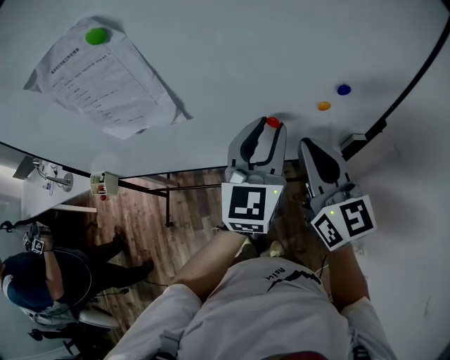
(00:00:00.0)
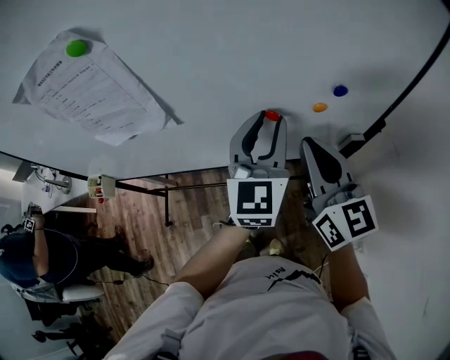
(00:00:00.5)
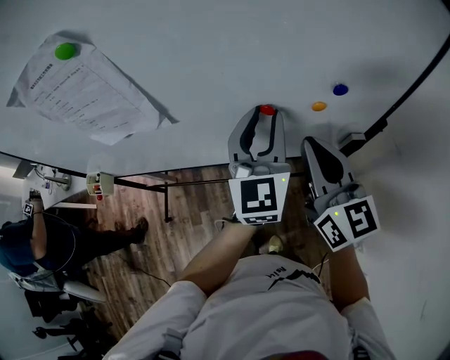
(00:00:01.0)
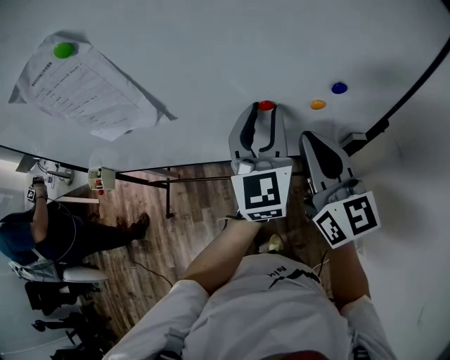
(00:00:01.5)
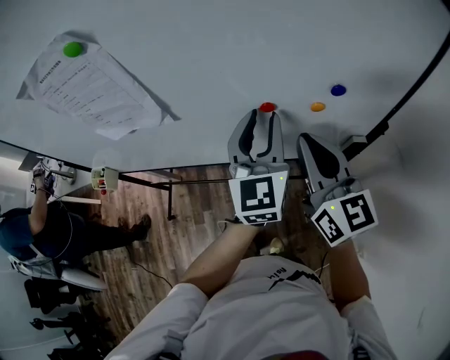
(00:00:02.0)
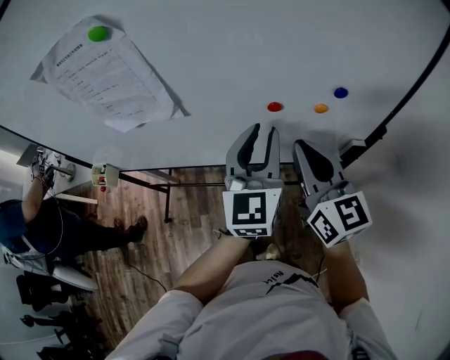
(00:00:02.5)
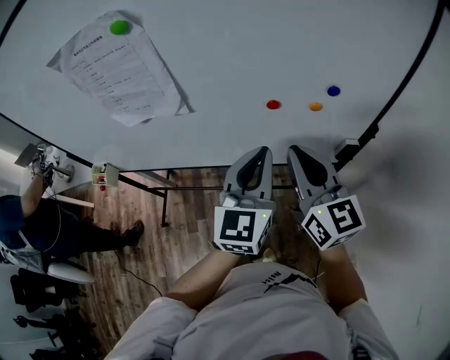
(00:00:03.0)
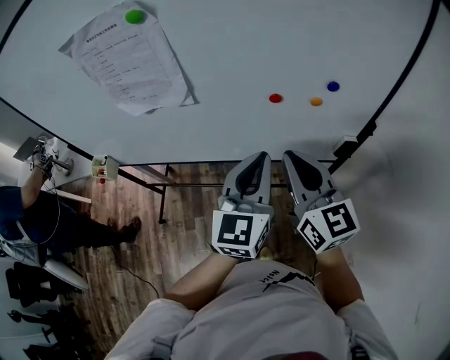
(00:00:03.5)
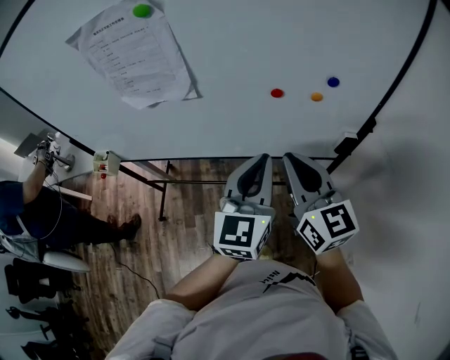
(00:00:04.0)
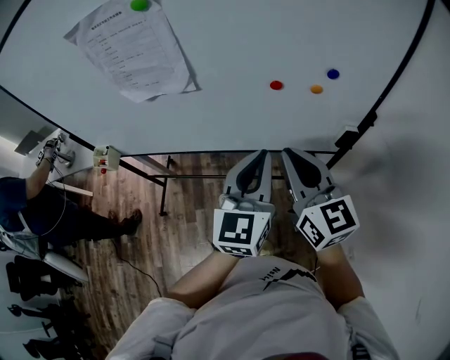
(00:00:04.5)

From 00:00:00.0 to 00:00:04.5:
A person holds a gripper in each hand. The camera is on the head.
From 00:00:00.0 to 00:00:02.0: The grippers stay close to where they were, moving slightly.
From 00:00:02.0 to 00:00:04.5: The left gripper moves backward, some 15 cm, and closes up; the right gripper shifts about 10 cm backward and to the left.

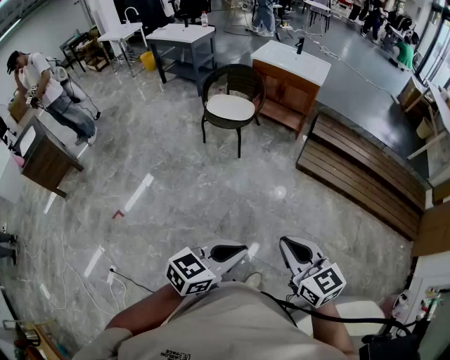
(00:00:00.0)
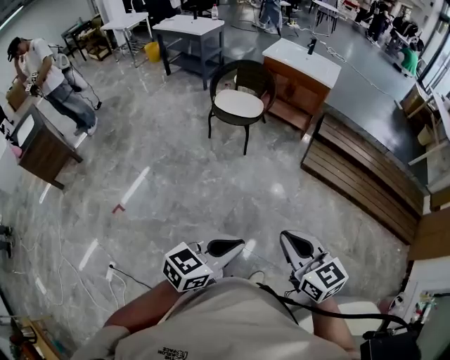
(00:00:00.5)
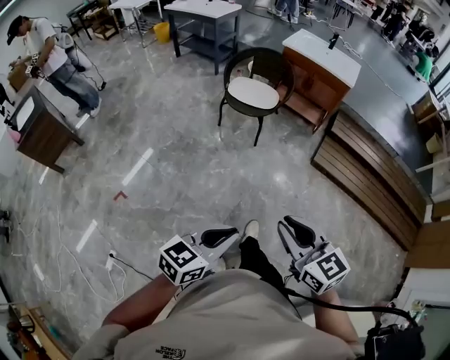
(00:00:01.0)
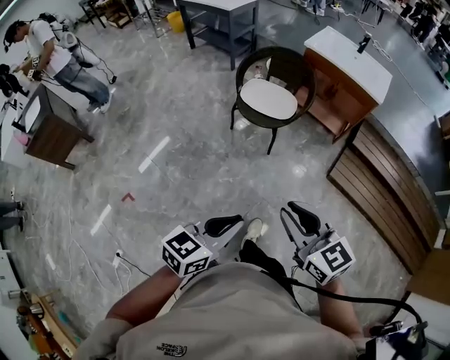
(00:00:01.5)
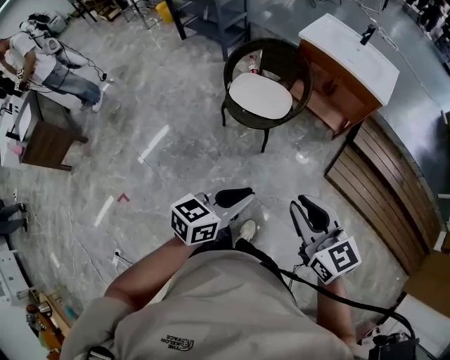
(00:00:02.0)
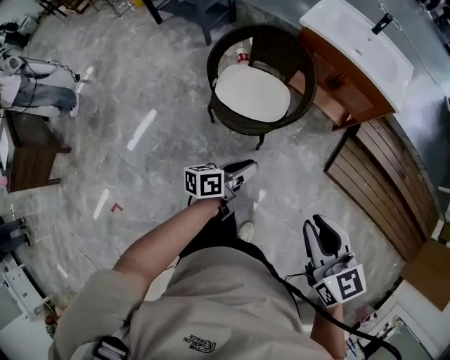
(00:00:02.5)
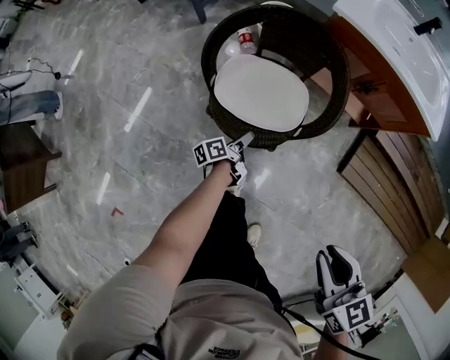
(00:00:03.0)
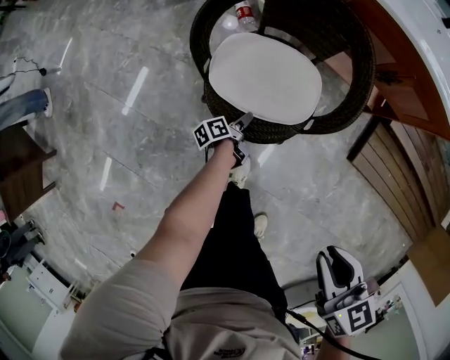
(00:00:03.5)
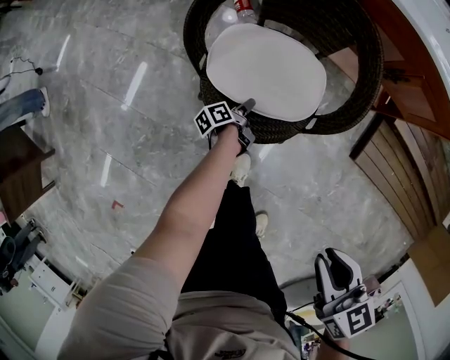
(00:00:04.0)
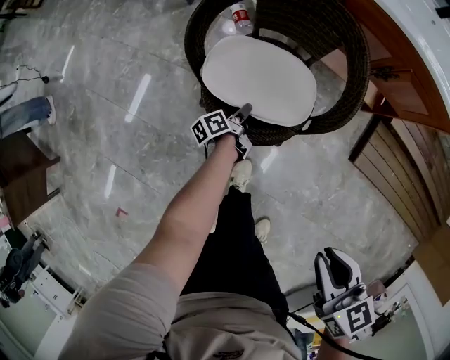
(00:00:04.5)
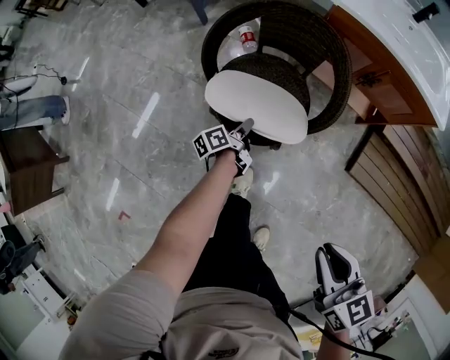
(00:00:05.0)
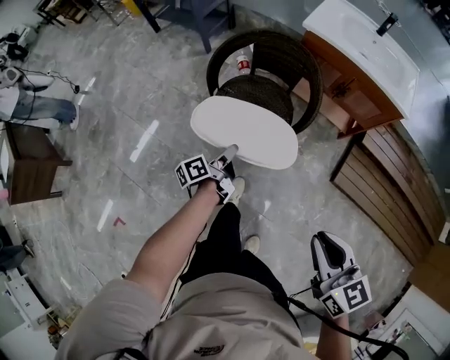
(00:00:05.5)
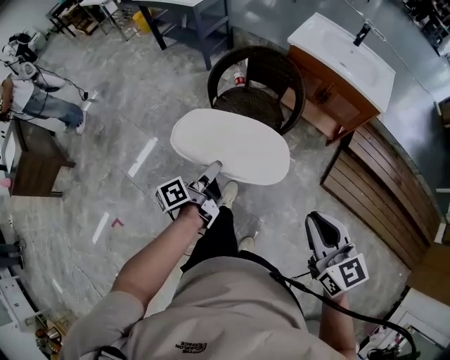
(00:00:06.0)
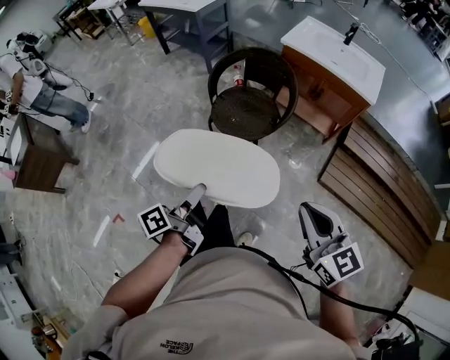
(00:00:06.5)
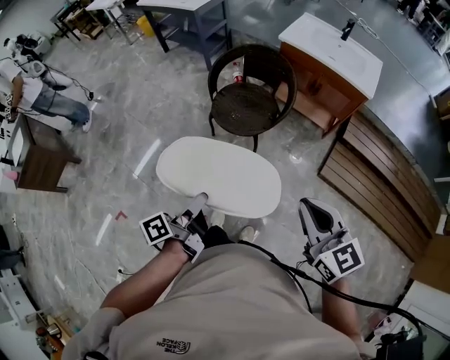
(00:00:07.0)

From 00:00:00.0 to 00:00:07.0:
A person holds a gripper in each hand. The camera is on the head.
From 00:00:00.0 to 00:00:02.0: The pair of grippers is taken forward, about 50 cm.
From 00:00:02.0 to 00:00:03.5: The left gripper is displaced downward and forward by roughly 80 cm, twists some 60 degrees counterclockwise, seen from behind, and opens up, while the right gripper heads forward and downward, covering some 40 cm, and changes its angle by roughly 40 degrees.
From 00:00:03.5 to 00:00:05.0: The right gripper moves backward and upward, some 10 cm, while the left gripper moves upward, roughly 15 cm, and closes its fingers.
From 00:00:05.0 to 00:00:07.0: The left gripper shifts approximately 60 cm backward and upward. The right gripper goes some 30 cm backward and upward, and rotates approximately 30 degrees.

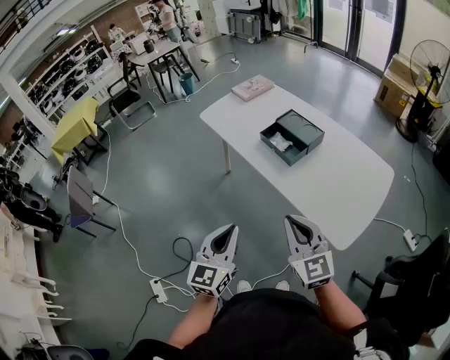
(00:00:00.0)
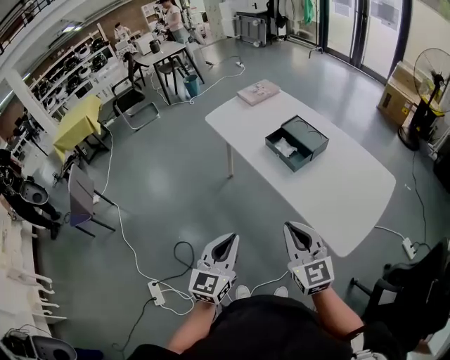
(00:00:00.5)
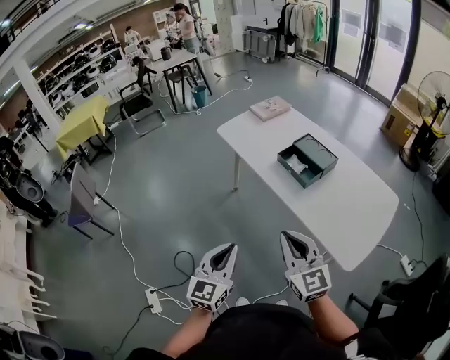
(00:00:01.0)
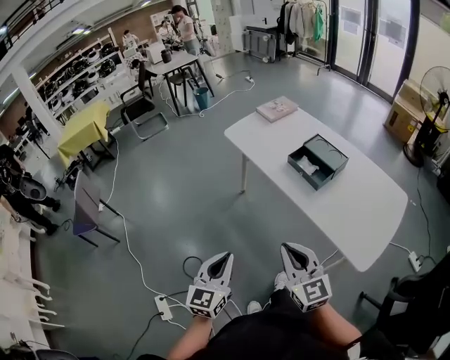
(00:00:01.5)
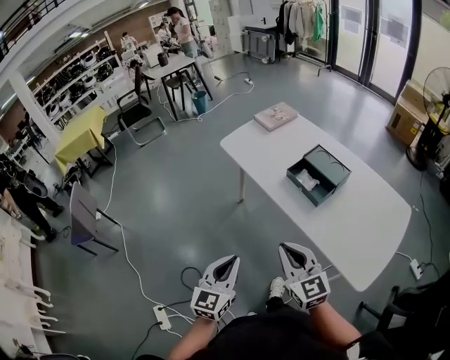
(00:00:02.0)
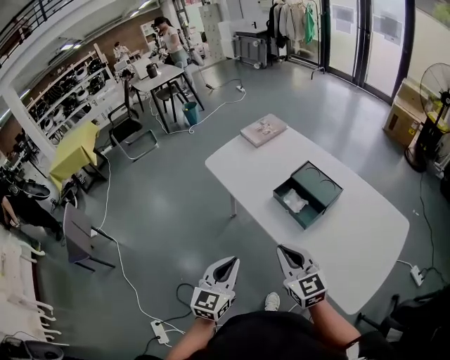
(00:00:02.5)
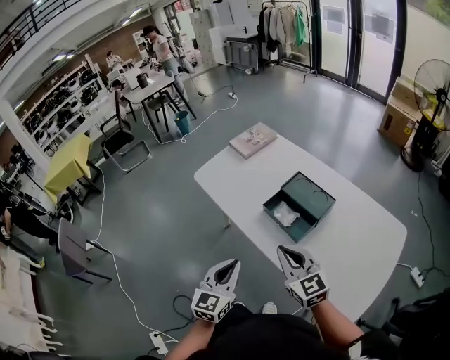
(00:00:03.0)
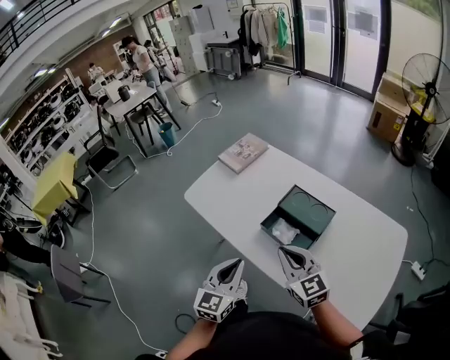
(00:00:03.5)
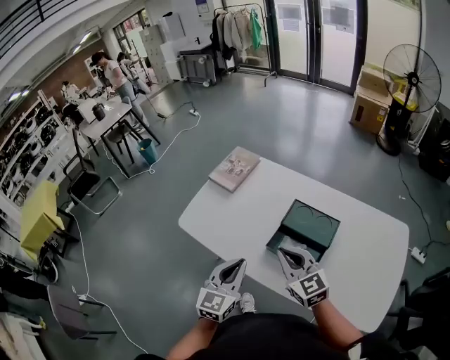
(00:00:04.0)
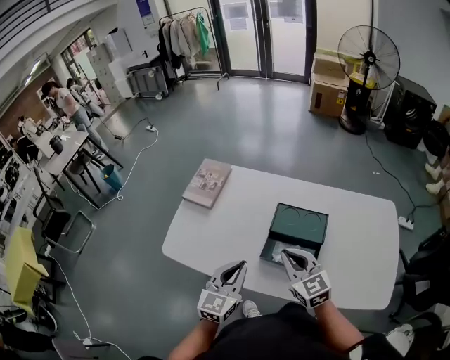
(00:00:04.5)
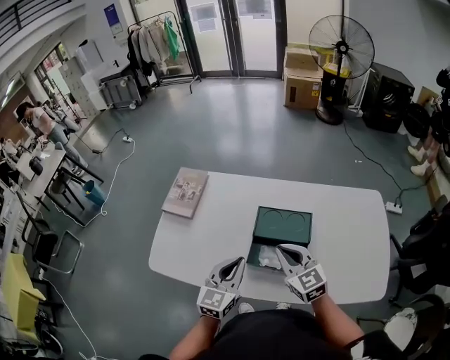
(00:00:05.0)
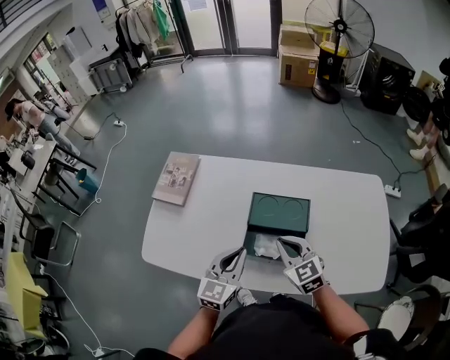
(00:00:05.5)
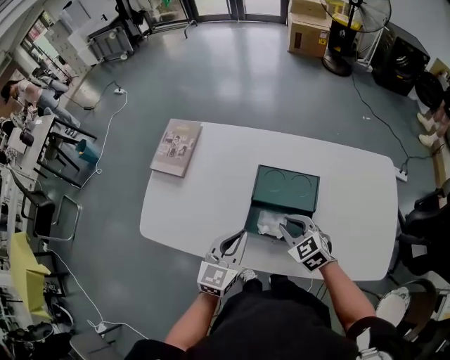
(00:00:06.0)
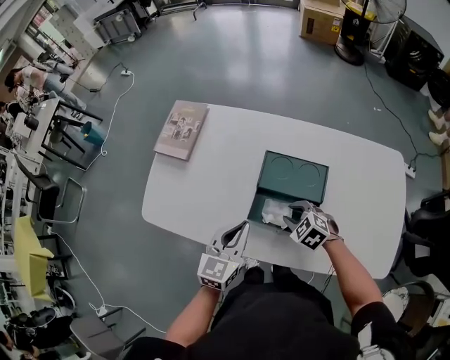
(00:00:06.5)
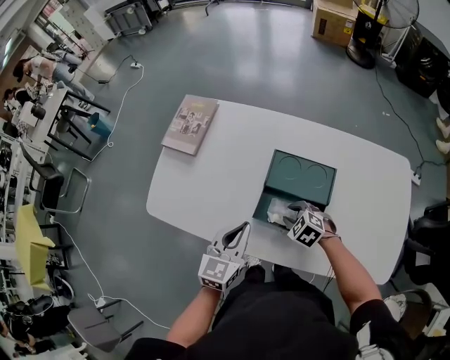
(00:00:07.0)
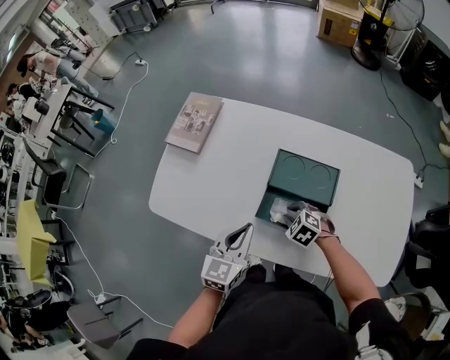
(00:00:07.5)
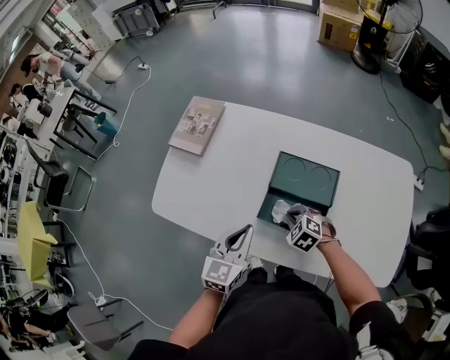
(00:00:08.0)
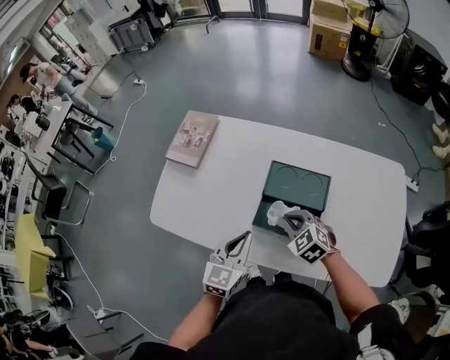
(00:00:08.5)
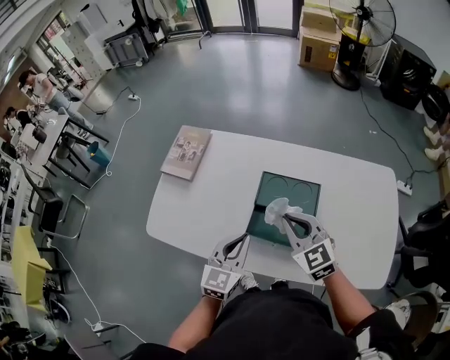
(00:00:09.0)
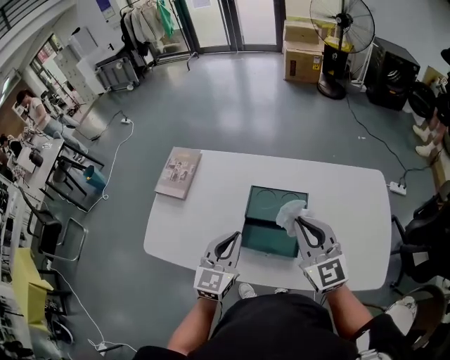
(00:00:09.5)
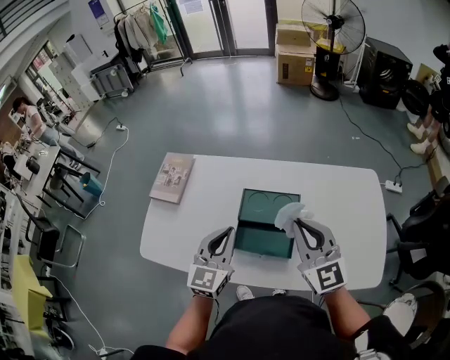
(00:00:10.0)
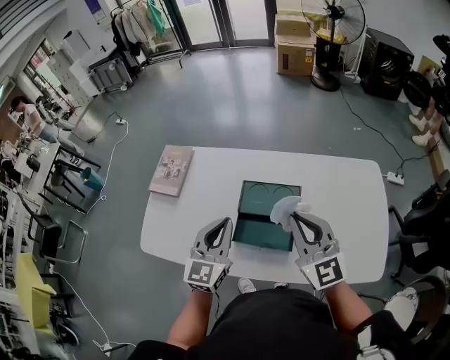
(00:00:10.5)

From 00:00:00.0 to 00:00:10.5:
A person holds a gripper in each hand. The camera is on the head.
From 00:00:00.0 to 00:00:02.0: The right gripper heads to the left and forward, covering roughly 15 cm. The left gripper shifts roughly 15 cm to the left, forward and downward.
From 00:00:02.0 to 00:00:04.0: The two grippers go roughly 40 cm forward. The left gripper changes its angle by approximately 20 degrees.
From 00:00:04.0 to 00:00:06.5: The left gripper travels forward, downward and to the right by approximately 15 cm, and swivels about 20 degrees. Meanwhile the right gripper moves downward, roughly 20 cm, tips its fingers downward by some 40 degrees, and opens.
From 00:00:06.5 to 00:00:08.5: The right gripper travels upward by roughly 5 cm, and closes.
From 00:00:08.5 to 00:00:10.5: The left gripper shifts approximately 15 cm upward and forward, while the right gripper is displaced upward and to the right by roughly 25 cm, and tilts its fingers approximately 40 degrees upward.

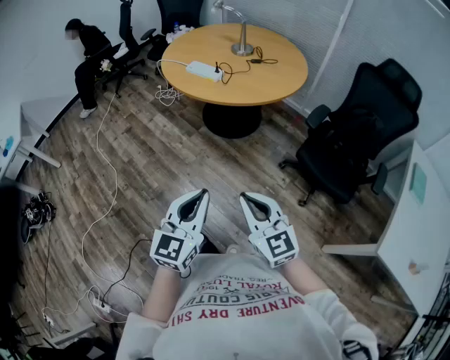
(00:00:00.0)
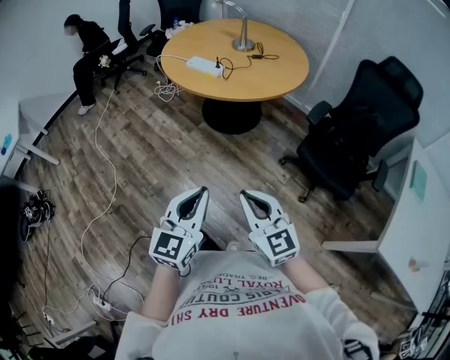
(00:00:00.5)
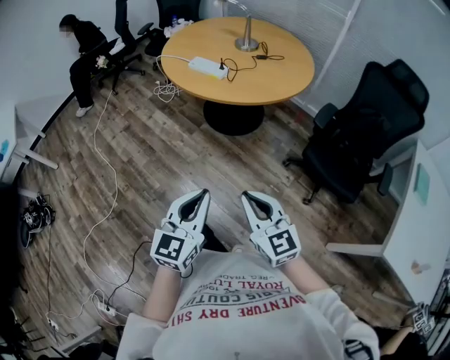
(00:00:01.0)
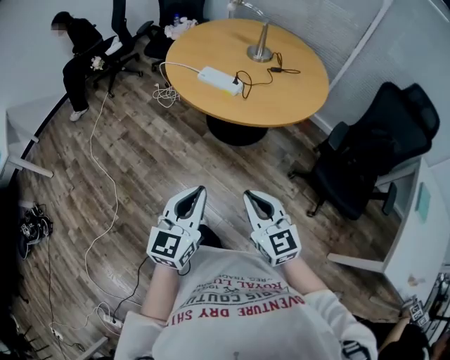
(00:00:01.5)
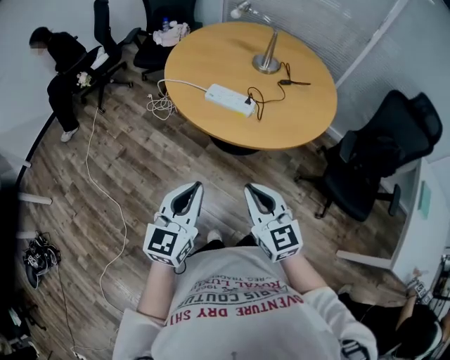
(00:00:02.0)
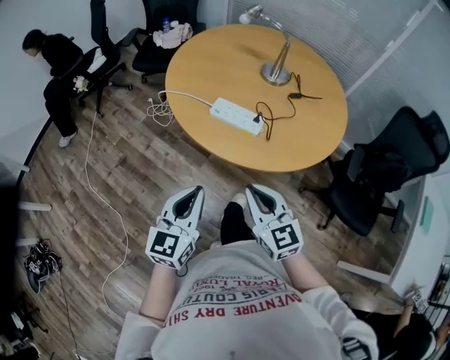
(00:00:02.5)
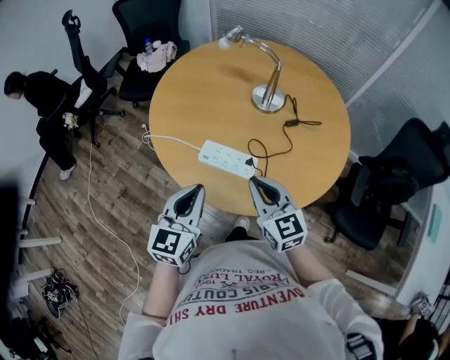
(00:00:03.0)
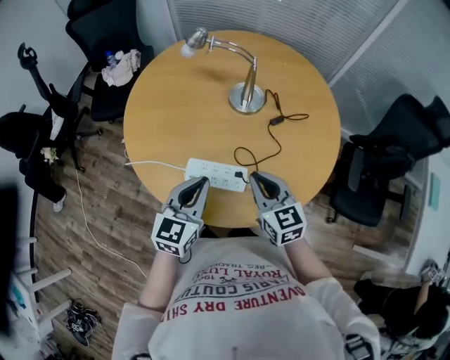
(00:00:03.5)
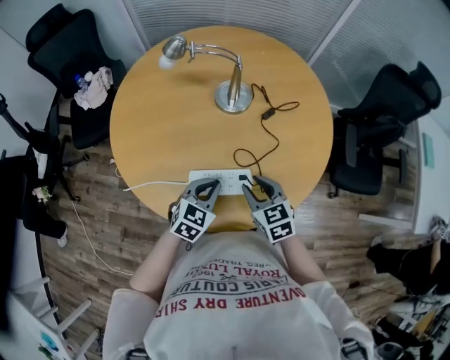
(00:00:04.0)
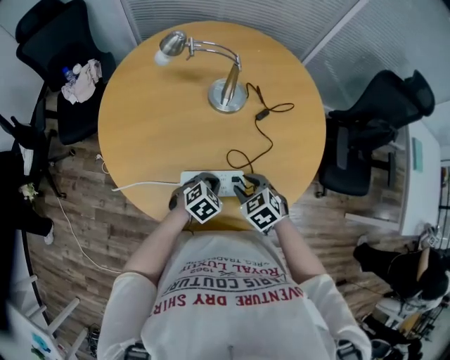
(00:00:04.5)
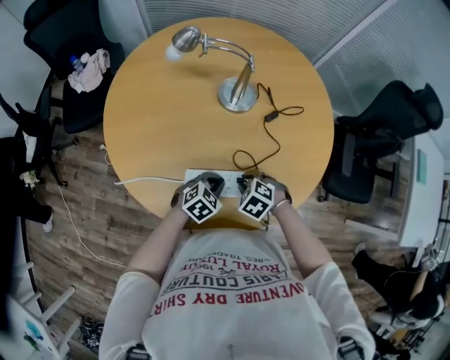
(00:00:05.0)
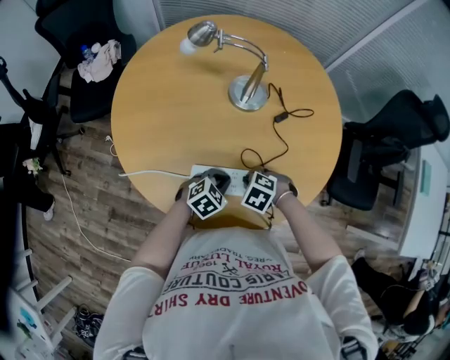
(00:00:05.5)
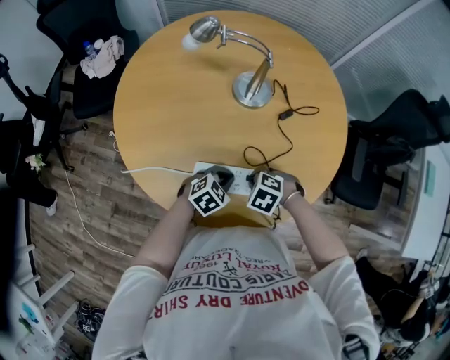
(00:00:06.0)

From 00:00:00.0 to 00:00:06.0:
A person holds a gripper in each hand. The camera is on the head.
From 00:00:00.0 to 00:00:02.0: Both grippers travel together forward and to the left, about 40 cm.
From 00:00:02.0 to 00:00:04.0: The right gripper changes place by some 40 cm, swivels approximately 40 degrees, and opens its fingers; the left gripper moves some 50 cm, and swivels some 50 degrees.
From 00:00:04.0 to 00:00:06.0: Both grippers move downward, roughly 10 cm. The right gripper tips its fingers downward by some 40 degrees.
